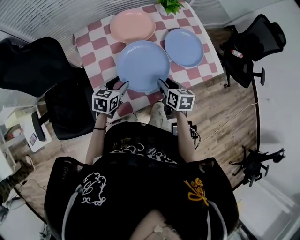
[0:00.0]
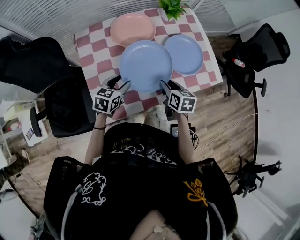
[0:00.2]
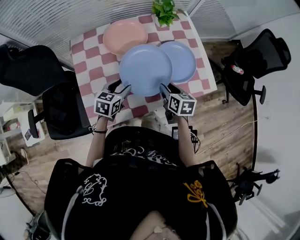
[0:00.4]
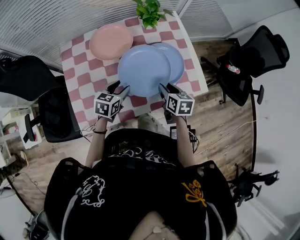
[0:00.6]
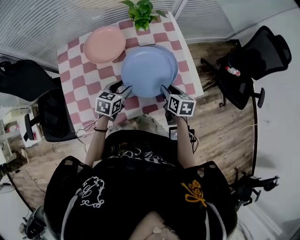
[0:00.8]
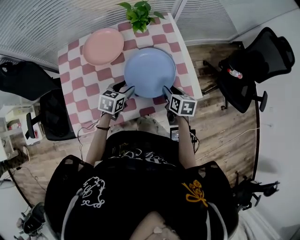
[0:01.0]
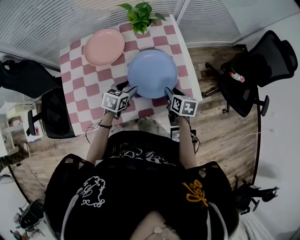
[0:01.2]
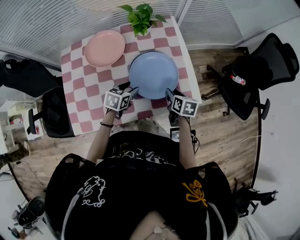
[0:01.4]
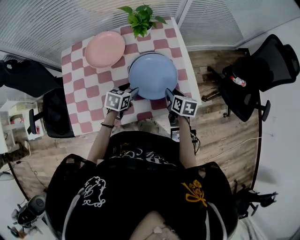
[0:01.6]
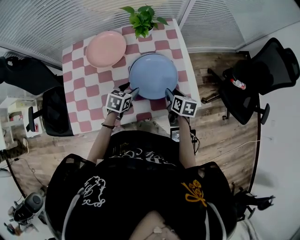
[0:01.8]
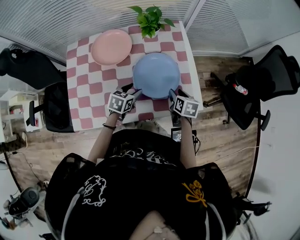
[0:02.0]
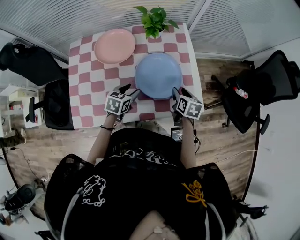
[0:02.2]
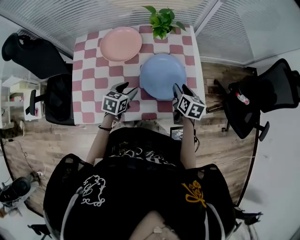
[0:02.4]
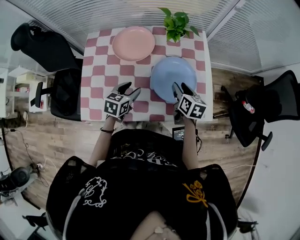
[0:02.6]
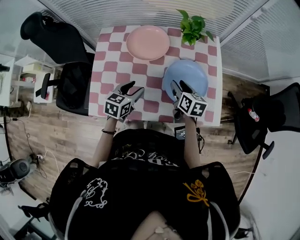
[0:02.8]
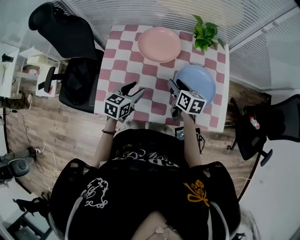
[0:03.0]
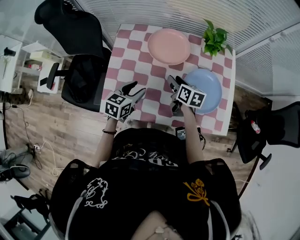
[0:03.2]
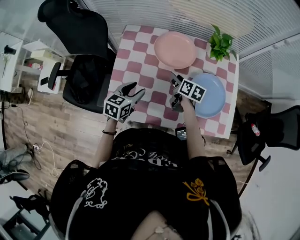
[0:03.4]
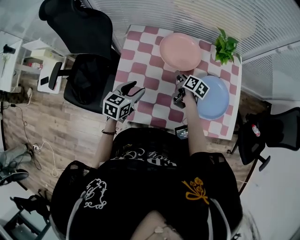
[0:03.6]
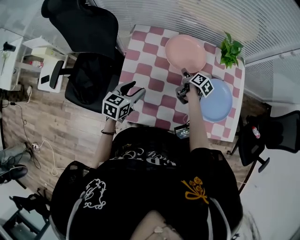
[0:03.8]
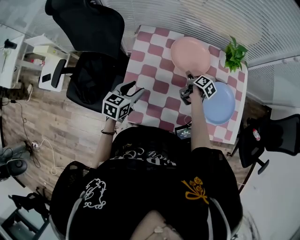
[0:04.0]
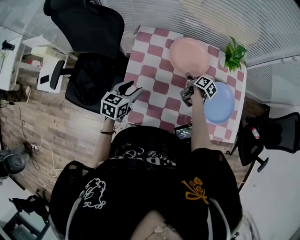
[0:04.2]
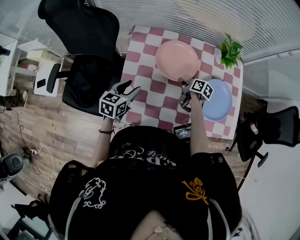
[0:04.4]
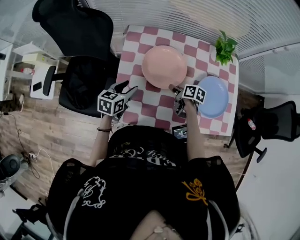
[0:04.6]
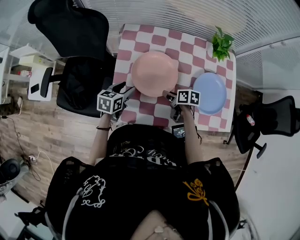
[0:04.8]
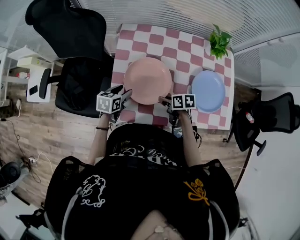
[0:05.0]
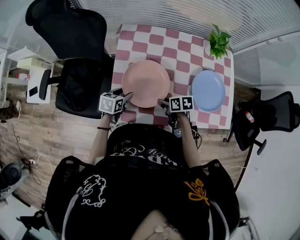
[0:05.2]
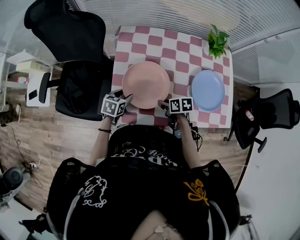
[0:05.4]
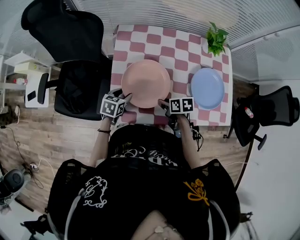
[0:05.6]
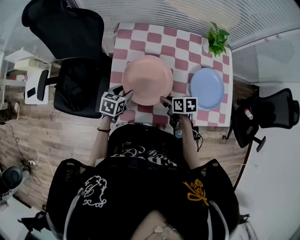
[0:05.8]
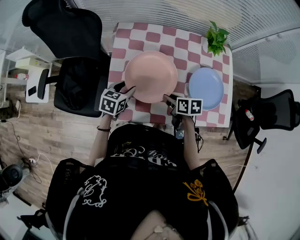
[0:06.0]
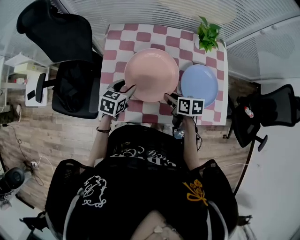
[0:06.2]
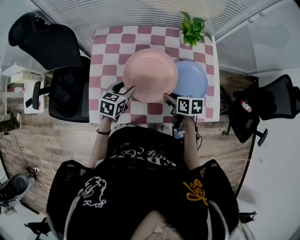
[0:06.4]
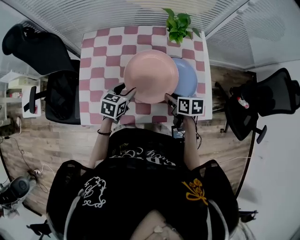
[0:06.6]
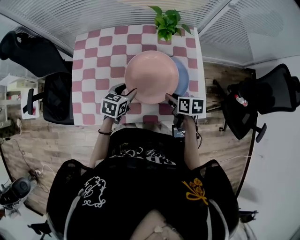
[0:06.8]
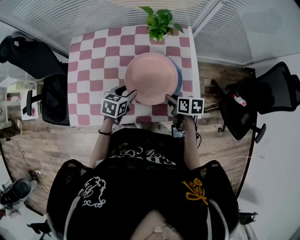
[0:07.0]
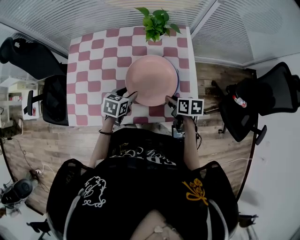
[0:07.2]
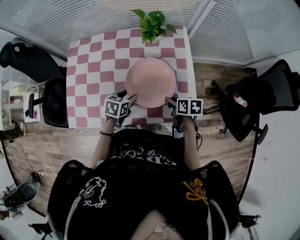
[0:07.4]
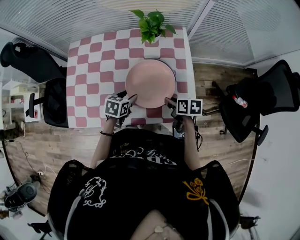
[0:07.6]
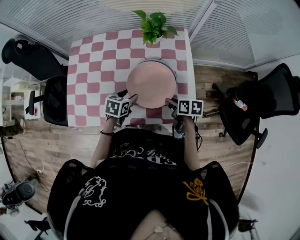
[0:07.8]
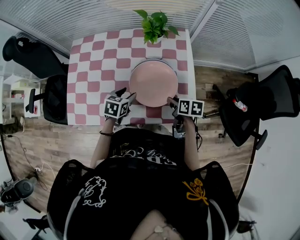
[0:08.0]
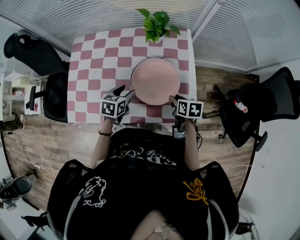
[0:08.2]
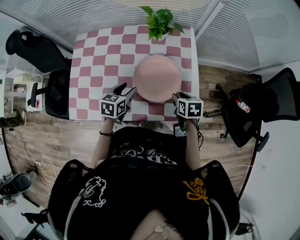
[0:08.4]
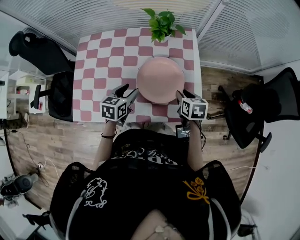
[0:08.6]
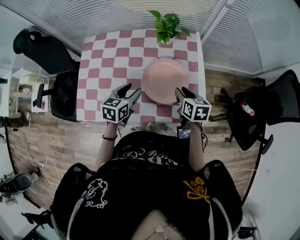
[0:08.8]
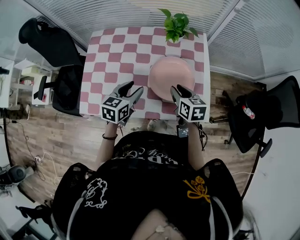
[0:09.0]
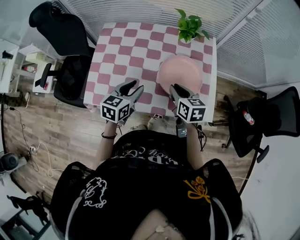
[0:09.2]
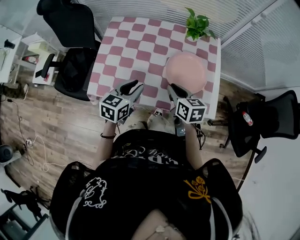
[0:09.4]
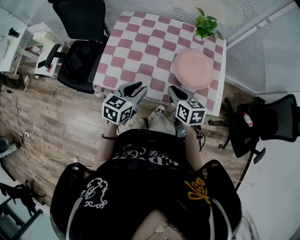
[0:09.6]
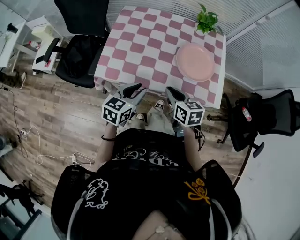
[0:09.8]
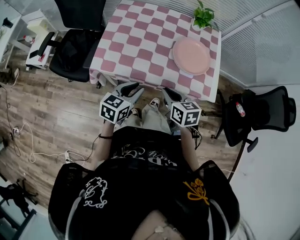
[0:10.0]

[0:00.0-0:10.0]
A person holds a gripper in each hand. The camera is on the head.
0:00.0 to 0:01.4: Both grippers move to the right and forward, some 30 cm.
0:01.4 to 0:02.8: Both grippers move to the left and upward, roughly 15 cm. The right gripper changes its angle by roughly 20 degrees. The left gripper swivels approximately 20 degrees.
0:02.8 to 0:04.2: The right gripper moves to the left, forward and downward, about 20 cm, and turns by about 30 degrees, while the left gripper moves to the left, some 25 cm.
0:04.2 to 0:05.8: The right gripper goes roughly 20 cm backward and to the left, and rotates about 40 degrees; the left gripper goes approximately 5 cm downward.
0:05.8 to 0:07.2: Both grippers travel together to the right, about 35 cm.
0:07.2 to 0:08.6: The right gripper ends up roughly 5 cm from where it was, and changes its angle by approximately 20 degrees; the left gripper moves roughly 5 cm.
0:08.6 to 0:10.0: The left gripper moves backward and to the left, roughly 25 cm, and closes. The right gripper shifts approximately 30 cm to the left and backward, and changes its angle by roughly 20 degrees.

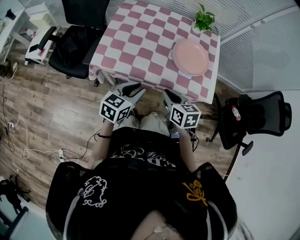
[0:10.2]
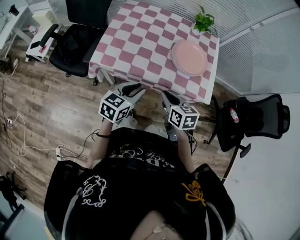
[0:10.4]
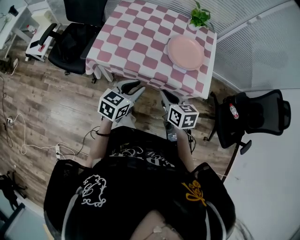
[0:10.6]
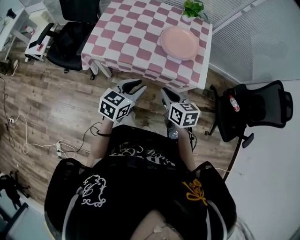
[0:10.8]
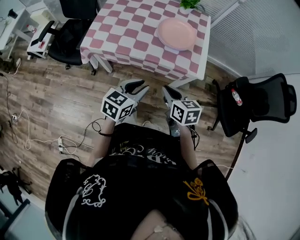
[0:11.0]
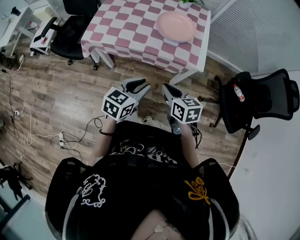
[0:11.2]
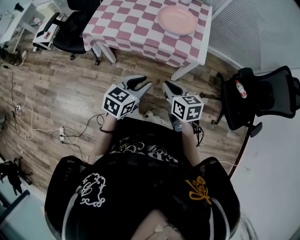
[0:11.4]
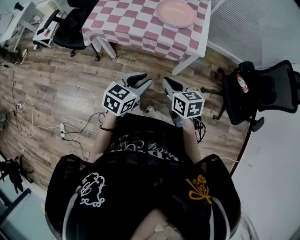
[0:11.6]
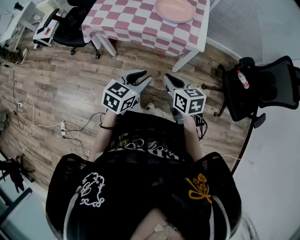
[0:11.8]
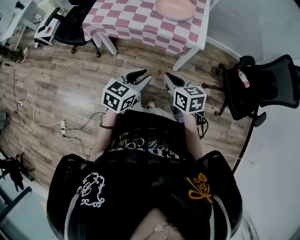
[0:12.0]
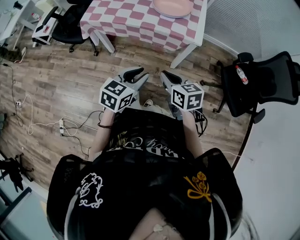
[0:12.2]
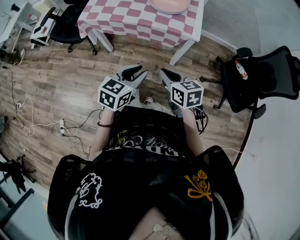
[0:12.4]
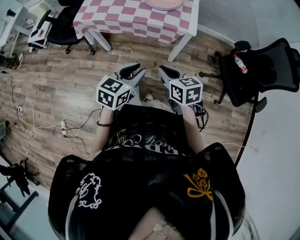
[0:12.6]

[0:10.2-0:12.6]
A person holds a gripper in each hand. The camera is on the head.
0:10.2 to 0:11.4: The left gripper heads to the right and backward, covering approximately 25 cm; the right gripper is displaced backward and to the right by some 25 cm.
0:11.4 to 0:12.6: Both grippers travel together backward, about 10 cm.

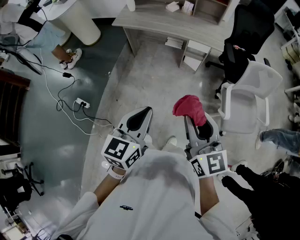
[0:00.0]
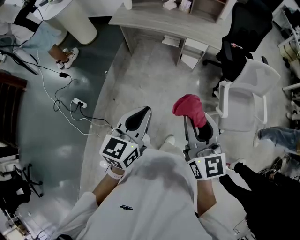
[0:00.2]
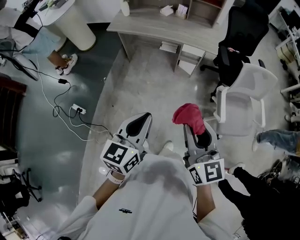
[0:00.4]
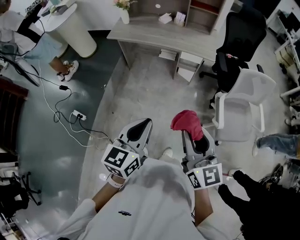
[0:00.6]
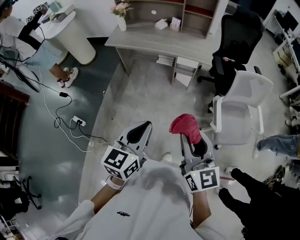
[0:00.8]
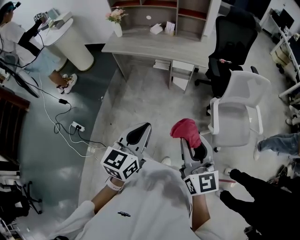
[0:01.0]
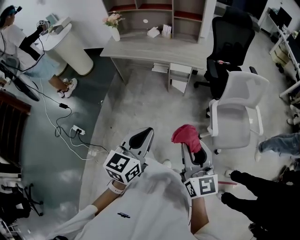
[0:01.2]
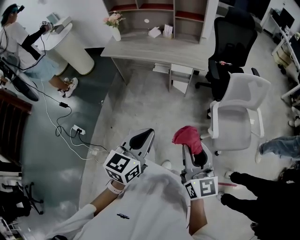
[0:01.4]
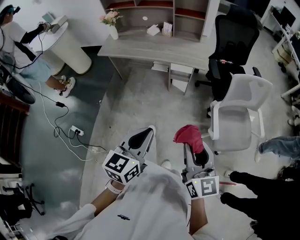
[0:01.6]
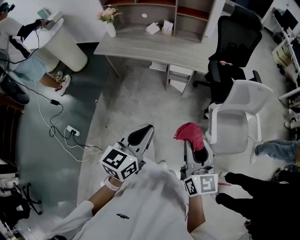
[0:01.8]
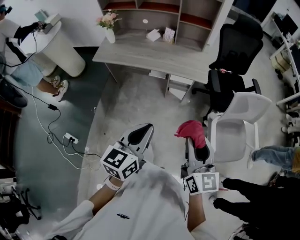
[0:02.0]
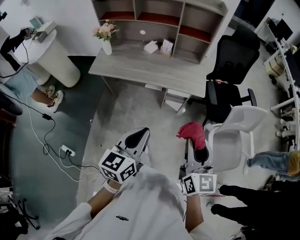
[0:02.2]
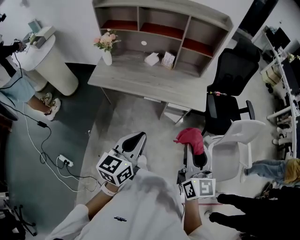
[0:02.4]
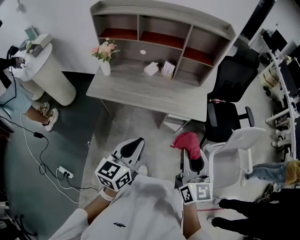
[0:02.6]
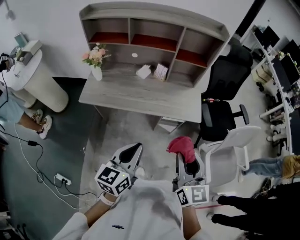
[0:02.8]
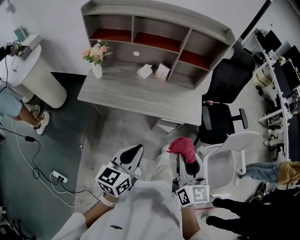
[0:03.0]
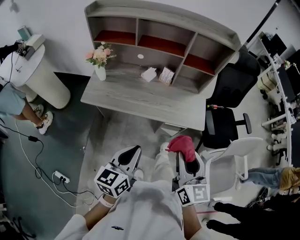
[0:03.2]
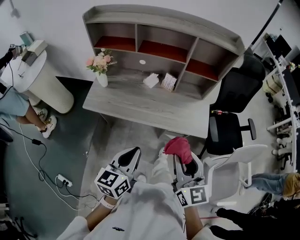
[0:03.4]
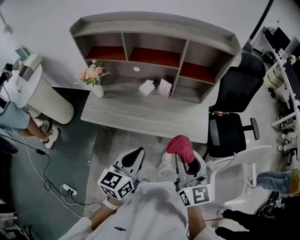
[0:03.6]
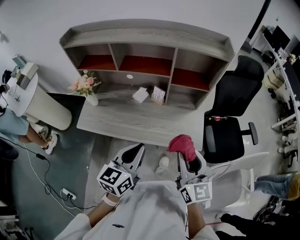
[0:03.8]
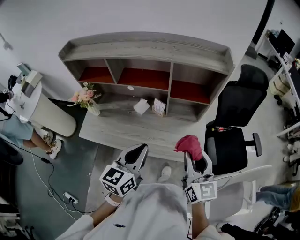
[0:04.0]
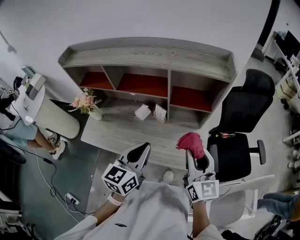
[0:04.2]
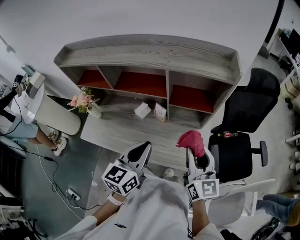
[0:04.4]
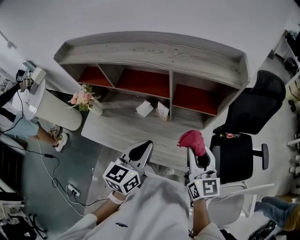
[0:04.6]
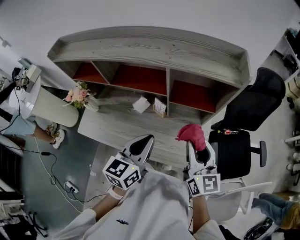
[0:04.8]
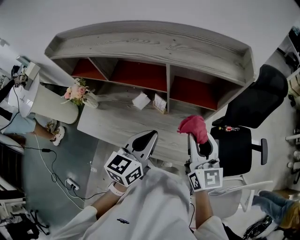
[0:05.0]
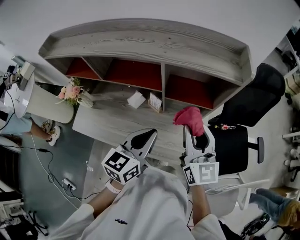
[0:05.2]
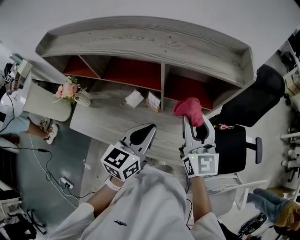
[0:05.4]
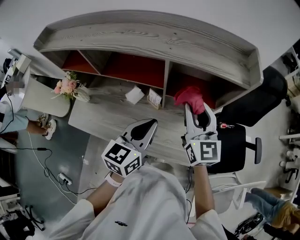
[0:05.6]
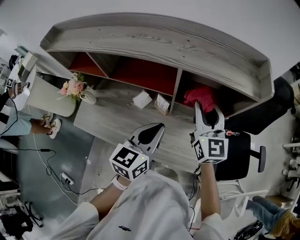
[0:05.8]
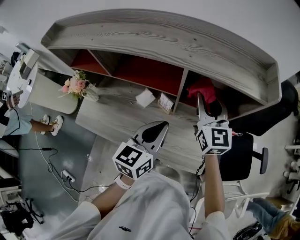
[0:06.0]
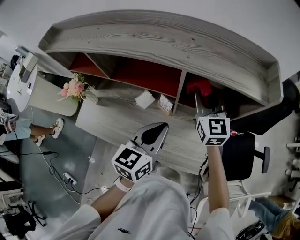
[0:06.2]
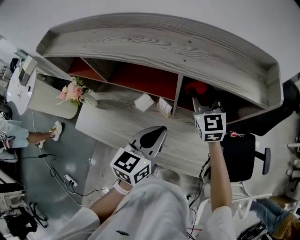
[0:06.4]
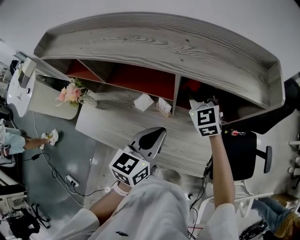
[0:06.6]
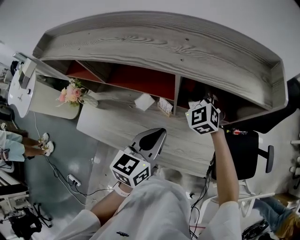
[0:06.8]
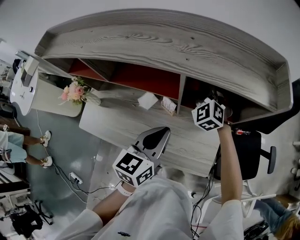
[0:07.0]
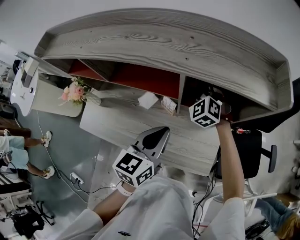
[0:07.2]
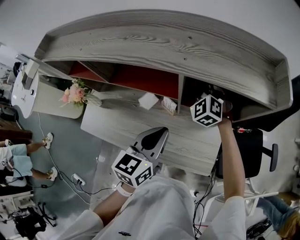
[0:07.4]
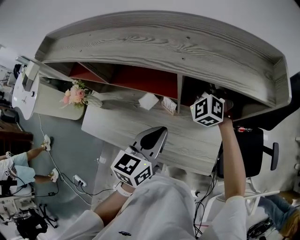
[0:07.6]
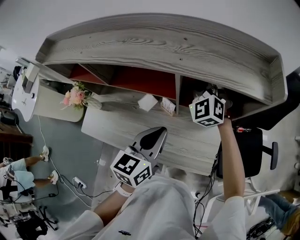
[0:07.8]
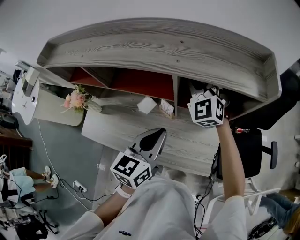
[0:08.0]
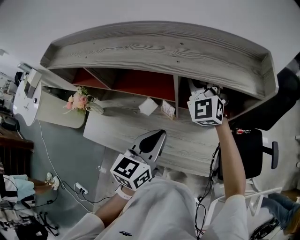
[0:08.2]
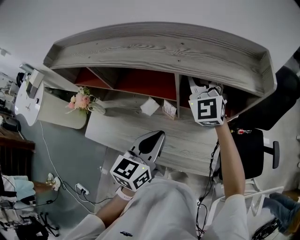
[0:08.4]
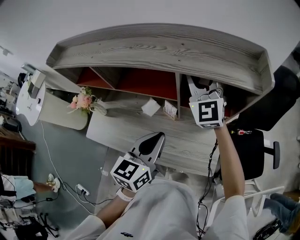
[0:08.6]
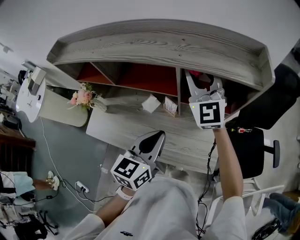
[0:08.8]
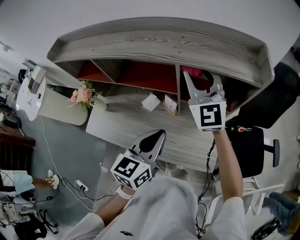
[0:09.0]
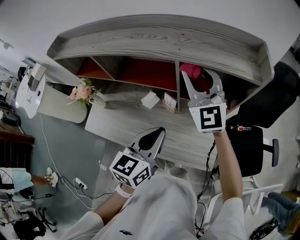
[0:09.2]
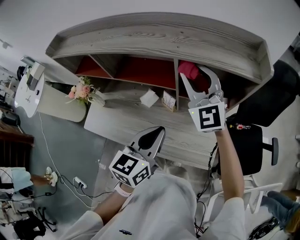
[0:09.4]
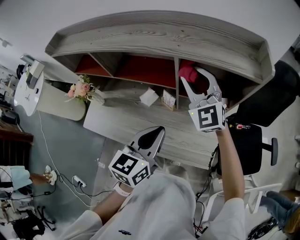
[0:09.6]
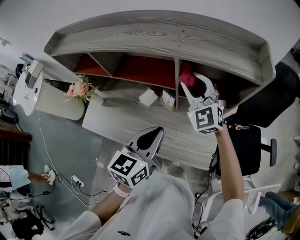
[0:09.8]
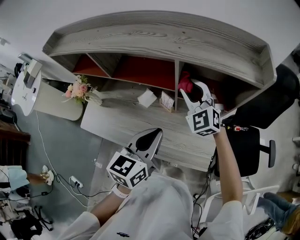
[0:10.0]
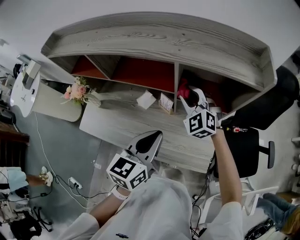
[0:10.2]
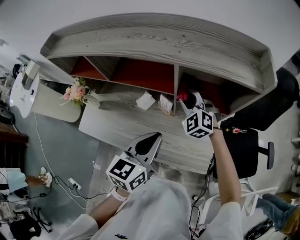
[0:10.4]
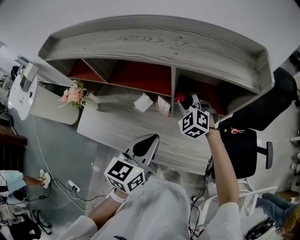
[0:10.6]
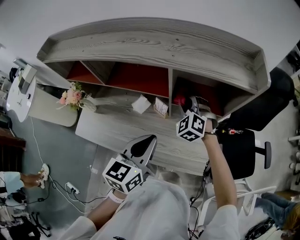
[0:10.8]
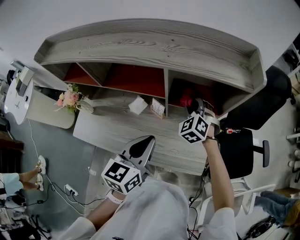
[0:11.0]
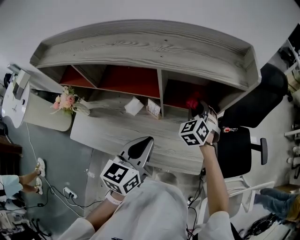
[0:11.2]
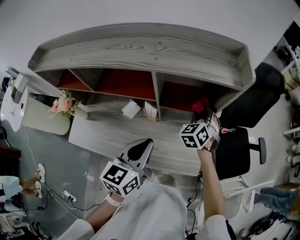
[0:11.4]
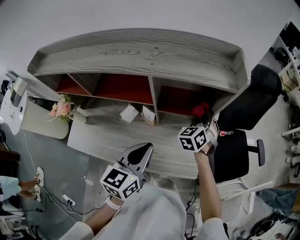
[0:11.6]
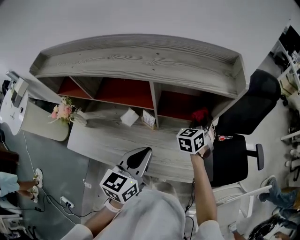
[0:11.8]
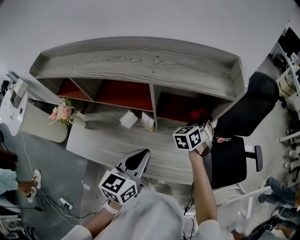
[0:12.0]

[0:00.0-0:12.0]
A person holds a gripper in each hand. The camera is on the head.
0:00.0 to 0:01.6: The right gripper goes about 15 cm to the right, while the left gripper heads to the right and forward, covering some 15 cm.
0:01.6 to 0:03.0: Both grippers travel together forward and to the left, approximately 40 cm.
0:03.0 to 0:04.4: Both grippers travel together forward, about 35 cm.
0:04.4 to 0:06.0: The left gripper is displaced forward by about 10 cm, while the right gripper moves forward, some 25 cm.
0:06.0 to 0:07.6: The right gripper heads forward, downward and to the left, covering approximately 15 cm, and rolls counterclockwise, seen from behind, by approximately 50 degrees.
0:07.6 to 0:09.0: The left gripper moves backward, about 5 cm. The right gripper heads upward and backward, covering about 20 cm, and angles its fingers upward, by about 40 degrees.
0:09.0 to 0:10.4: The right gripper is displaced downward by approximately 20 cm, and angles its fingers downward, by roughly 40 degrees.
0:10.4 to 0:12.0: The right gripper shifts by approximately 20 cm, and turns by approximately 50 degrees.
